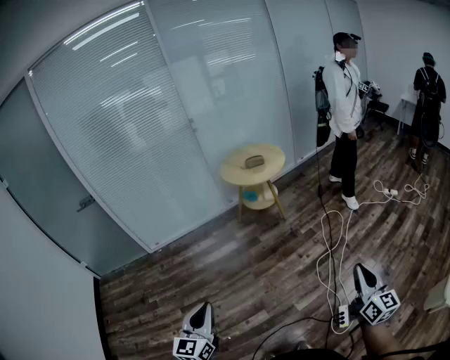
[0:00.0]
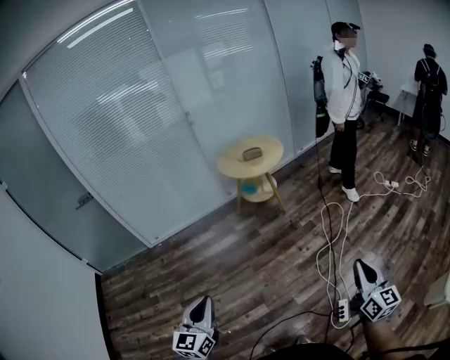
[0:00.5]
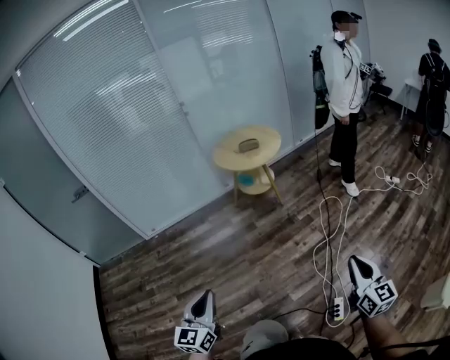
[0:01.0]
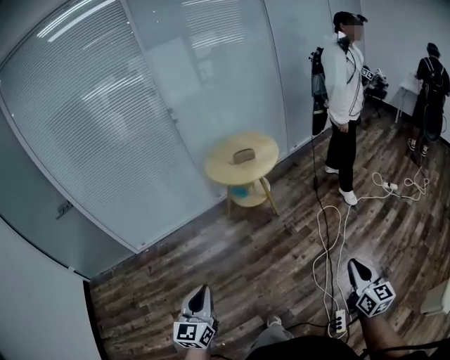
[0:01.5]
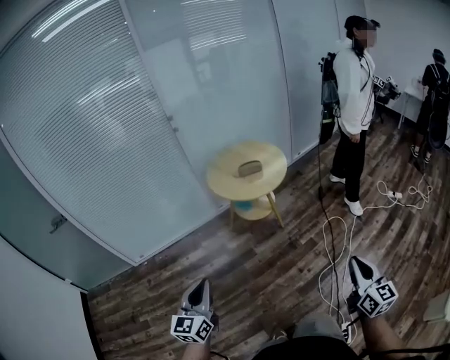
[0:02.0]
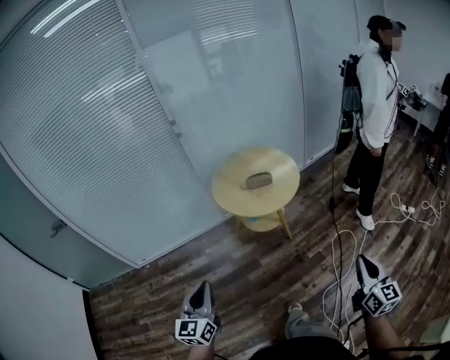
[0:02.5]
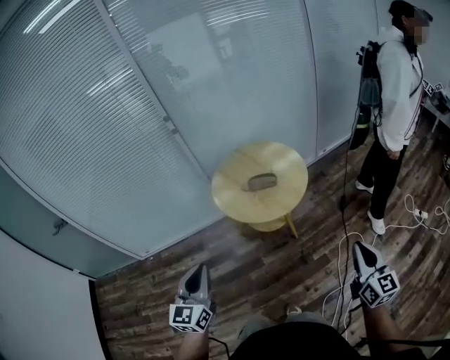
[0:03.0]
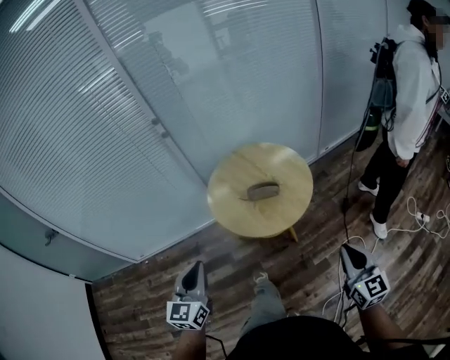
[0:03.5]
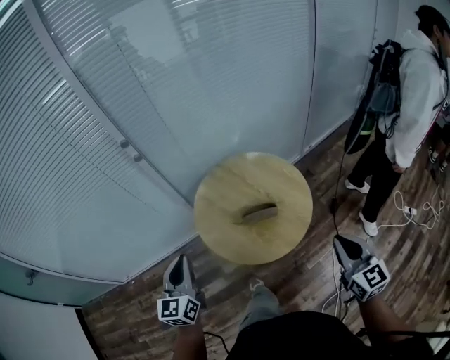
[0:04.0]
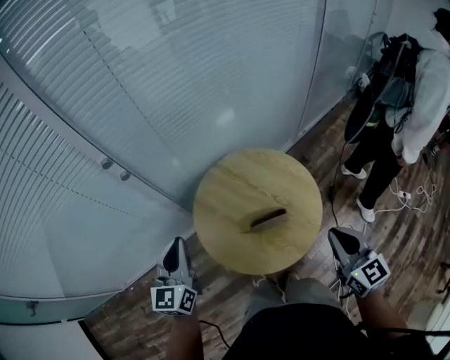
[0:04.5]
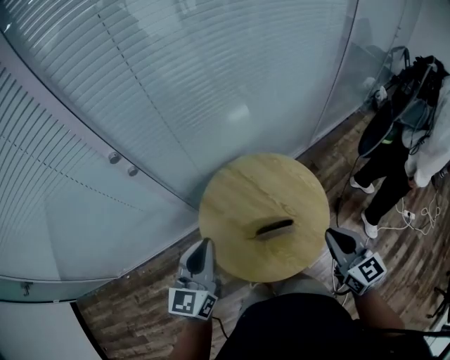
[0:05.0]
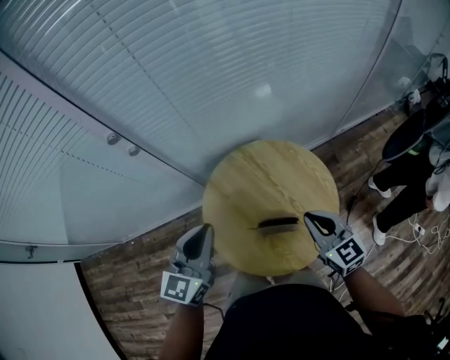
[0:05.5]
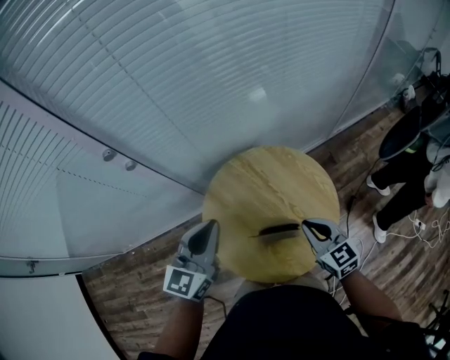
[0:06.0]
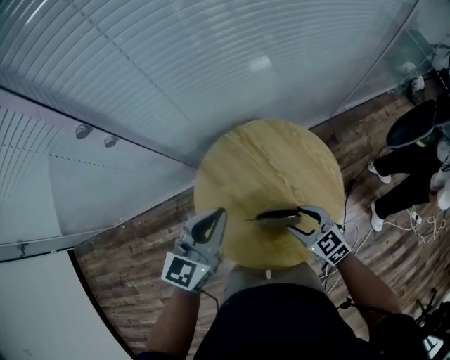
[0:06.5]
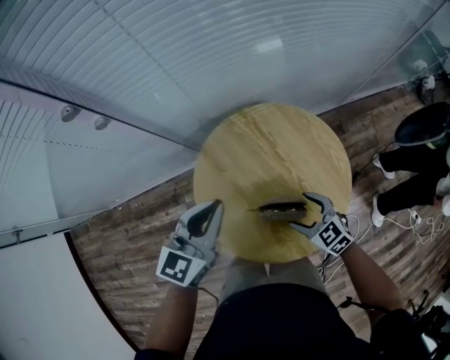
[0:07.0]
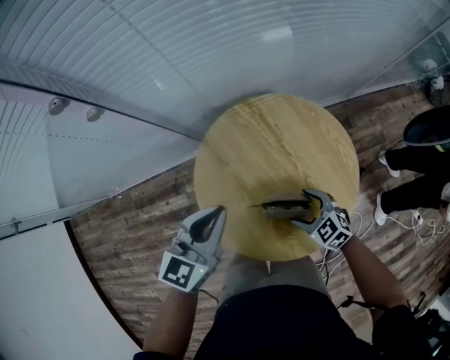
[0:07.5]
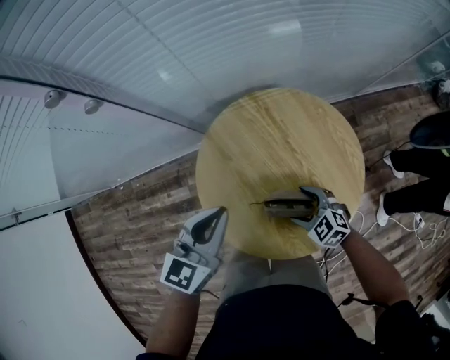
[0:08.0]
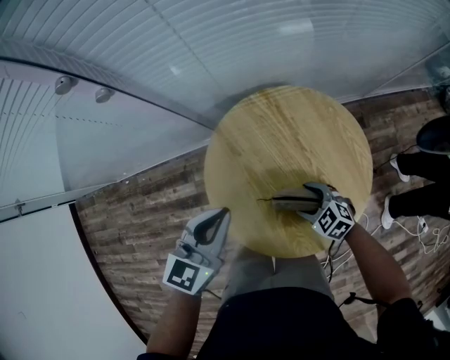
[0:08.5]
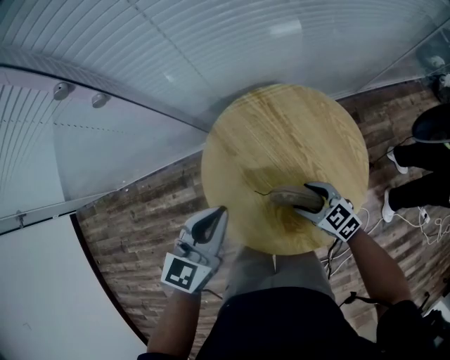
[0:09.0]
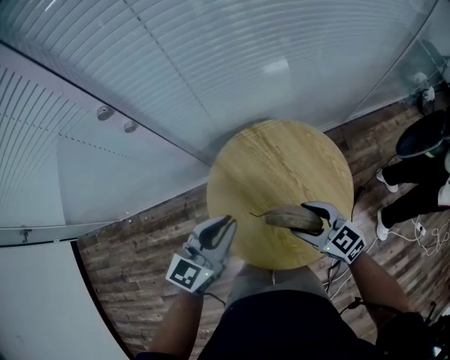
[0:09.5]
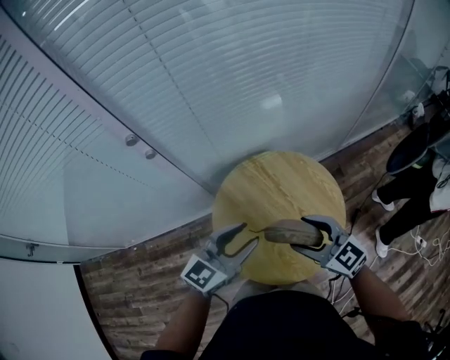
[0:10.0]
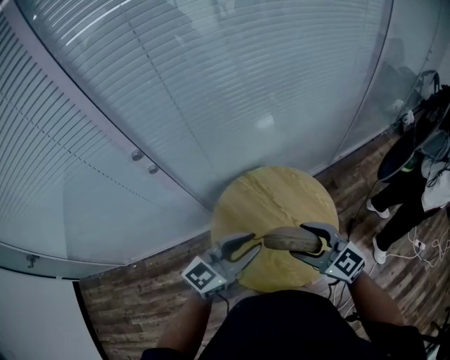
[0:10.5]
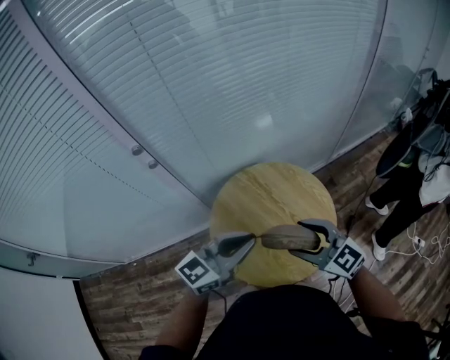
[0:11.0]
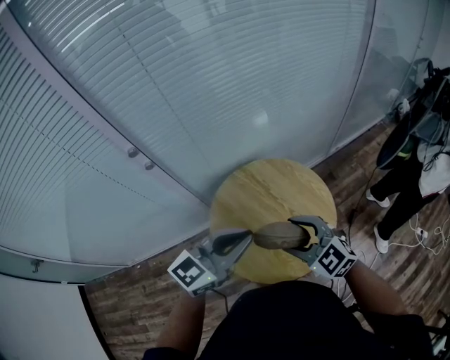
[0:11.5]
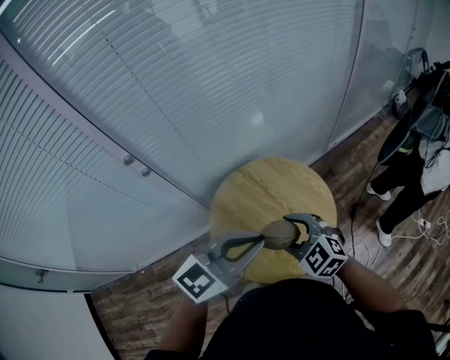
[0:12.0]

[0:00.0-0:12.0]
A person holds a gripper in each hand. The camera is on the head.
0.0 to 2.0 s: Both grippers move forward, approximately 35 cm.
2.0 to 4.0 s: The pair of grippers is taken forward, some 60 cm.
4.0 to 6.0 s: The right gripper heads forward and downward, covering approximately 30 cm, and turns by roughly 30 degrees. Meanwhile the left gripper is displaced forward by about 25 cm.
6.0 to 8.0 s: The right gripper shifts about 20 cm downward, changes its angle by roughly 40 degrees, and opens its fingers. The left gripper is displaced downward by about 10 cm.
8.0 to 10.0 s: The left gripper heads upward, covering approximately 10 cm, rotates some 20 degrees, and opens its fingers. Meanwhile the right gripper shifts some 30 cm upward, and swivels roughly 30 degrees.
10.0 to 12.0 s: The left gripper travels upward, to the right and backward by roughly 15 cm, rotates some 20 degrees, and closes its fingers.

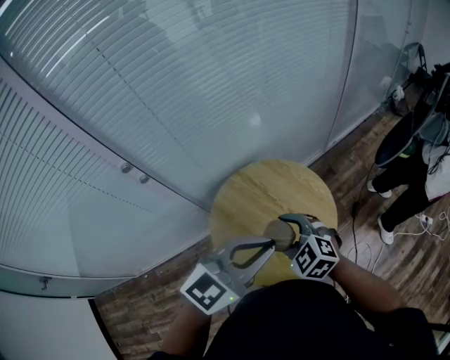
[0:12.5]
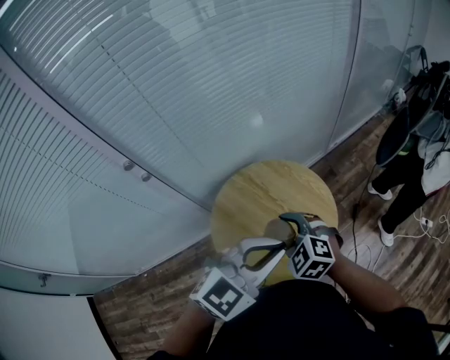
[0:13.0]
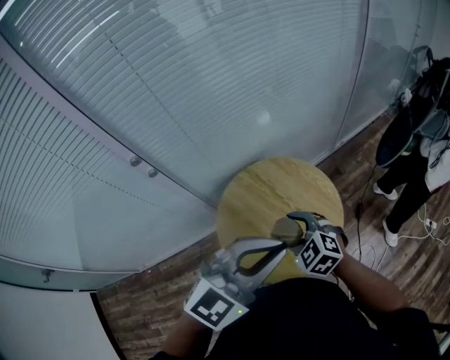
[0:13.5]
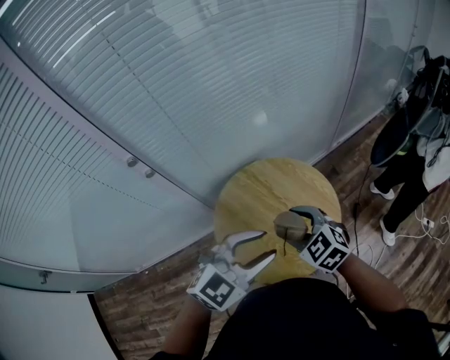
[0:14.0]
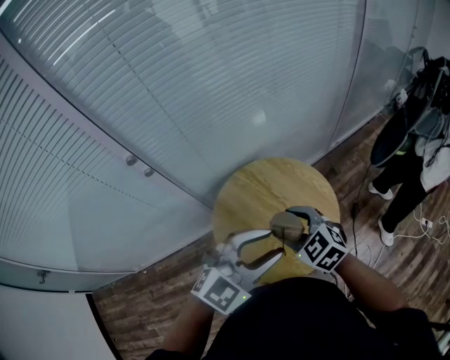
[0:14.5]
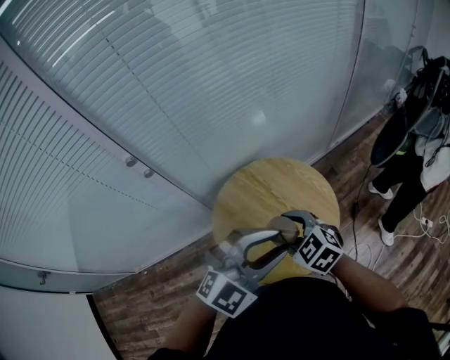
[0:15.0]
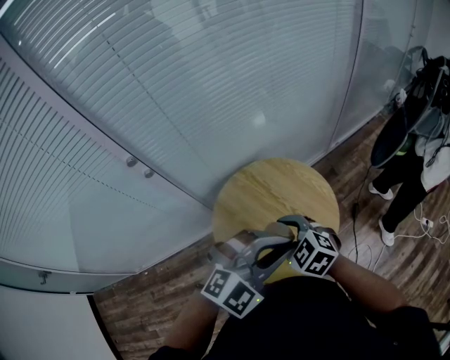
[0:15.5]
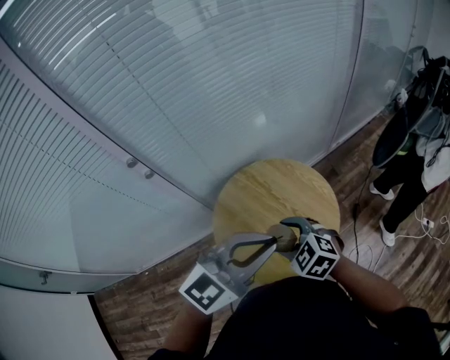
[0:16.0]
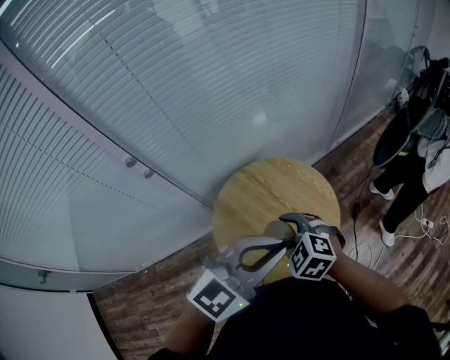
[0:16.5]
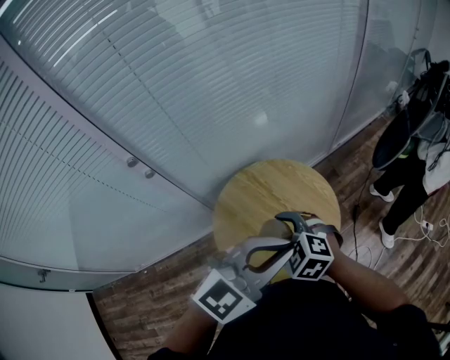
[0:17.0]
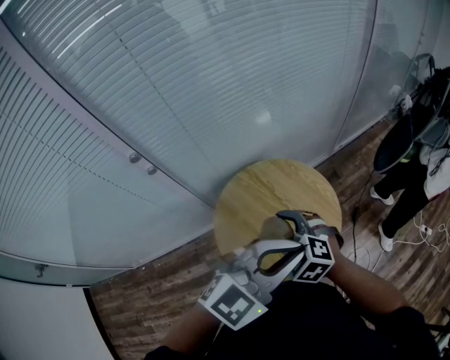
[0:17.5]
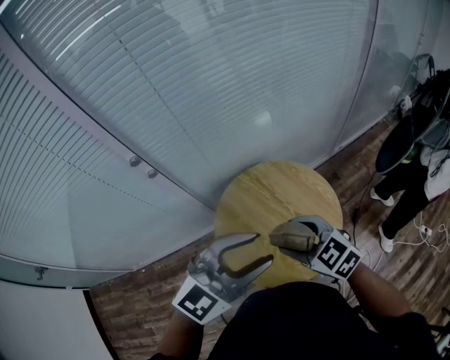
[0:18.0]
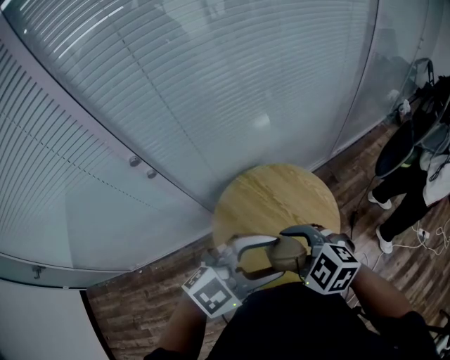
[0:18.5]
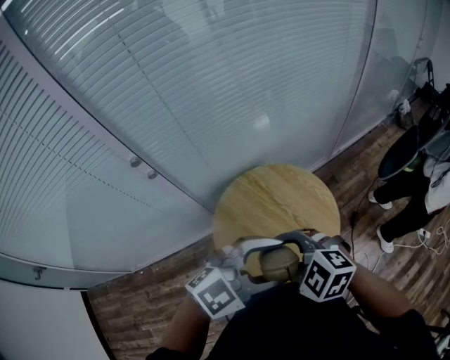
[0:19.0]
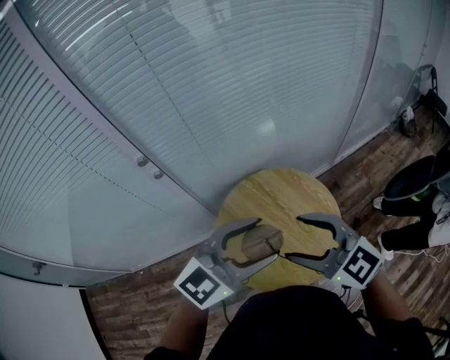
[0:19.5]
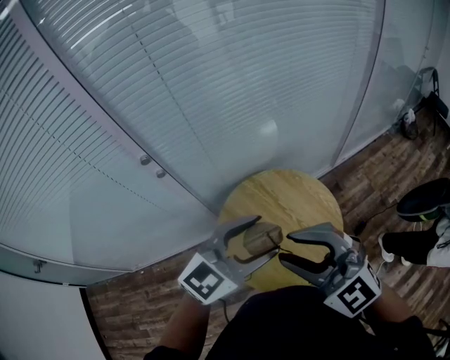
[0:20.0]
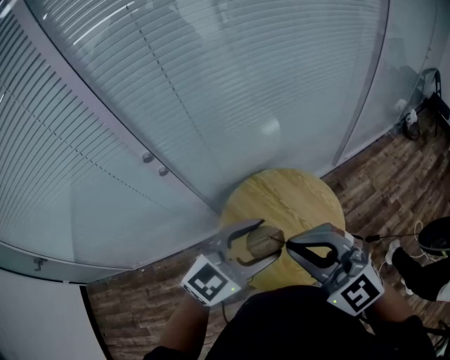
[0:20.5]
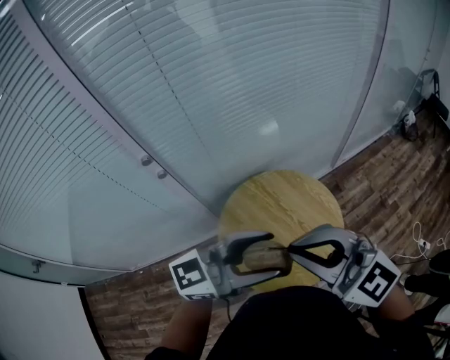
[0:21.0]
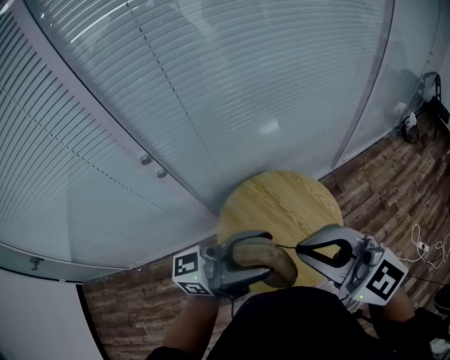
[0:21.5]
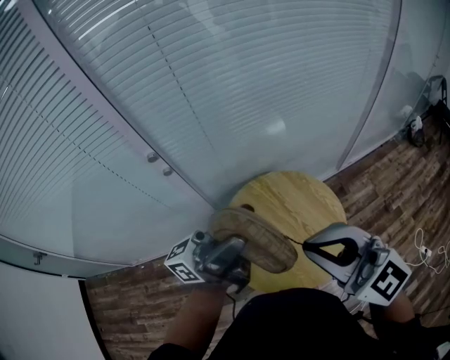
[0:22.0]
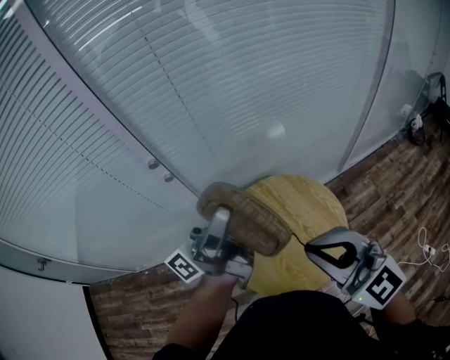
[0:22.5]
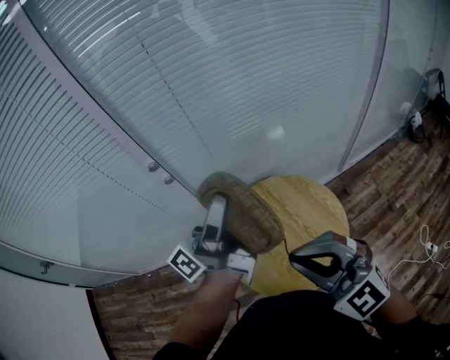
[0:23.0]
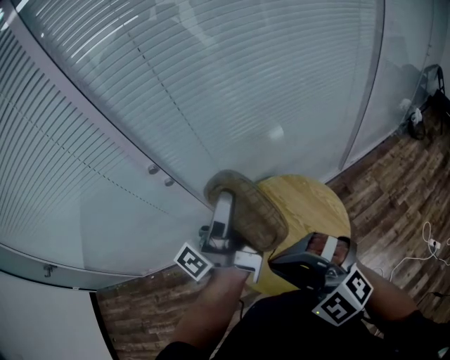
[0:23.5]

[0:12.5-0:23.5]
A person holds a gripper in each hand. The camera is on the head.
12.5 to 14.5 s: The left gripper opens up.
14.5 to 16.0 s: The left gripper closes up.
16.0 to 18.0 s: The left gripper opens, while the right gripper goes approximately 5 cm upward.
18.0 to 20.0 s: The right gripper goes some 15 cm upward, and turns by about 40 degrees.
20.0 to 21.5 s: The left gripper tilts its fingers some 40 degrees upward, while the right gripper heads upward, covering some 5 cm, and closes up.
21.5 to 23.5 s: The right gripper moves downward, some 5 cm, and changes its angle by about 30 degrees. The left gripper moves some 15 cm, and swivels about 40 degrees.

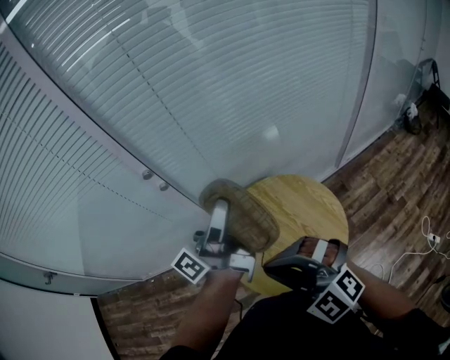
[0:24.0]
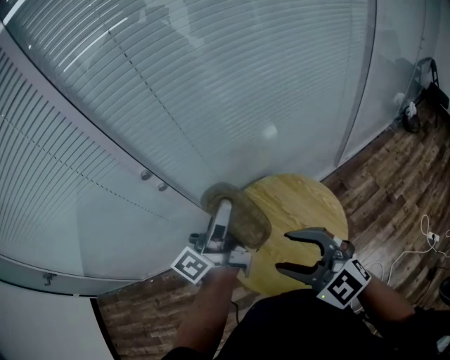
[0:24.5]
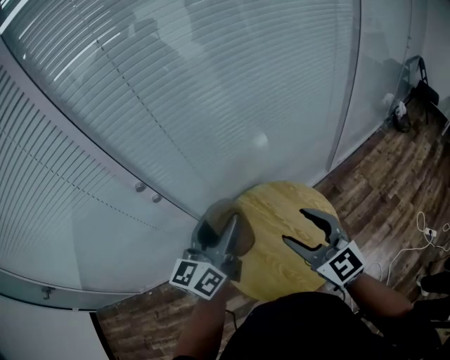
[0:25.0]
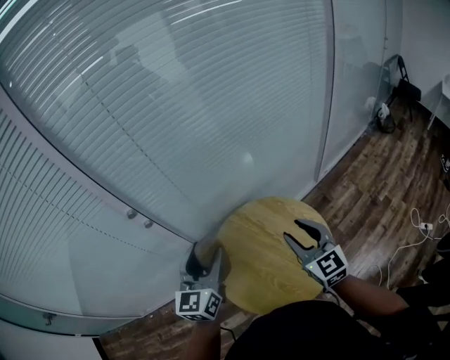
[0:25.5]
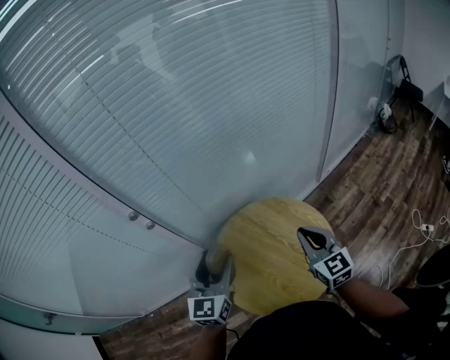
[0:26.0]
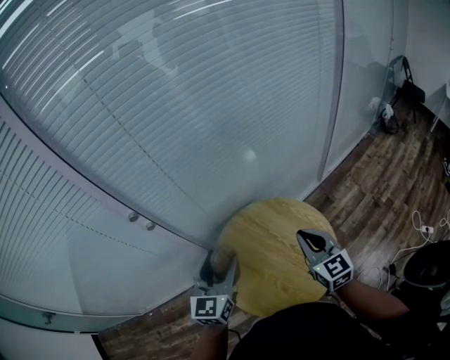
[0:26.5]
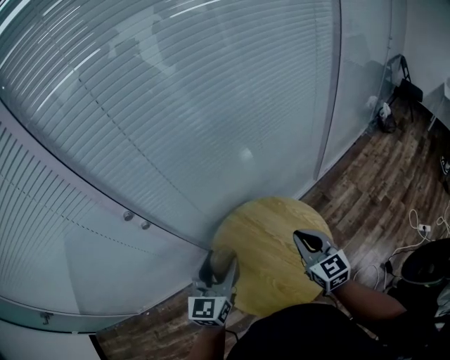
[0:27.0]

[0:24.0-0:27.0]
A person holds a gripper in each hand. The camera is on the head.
24.0 to 25.5 s: The right gripper goes roughly 20 cm to the right, forward and downward, turns by roughly 60 degrees, and opens its fingers, while the left gripper goes approximately 15 cm downward, and rotates around the line of its fingers by approximately 60 degrees, clockwise from behind.
25.5 to 27.0 s: The right gripper closes up.

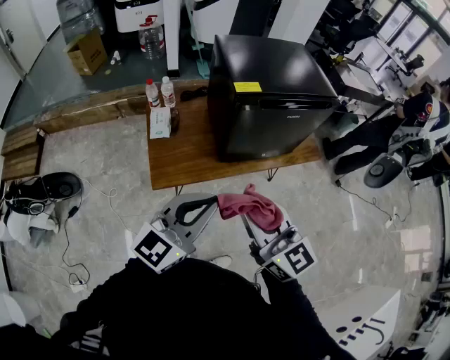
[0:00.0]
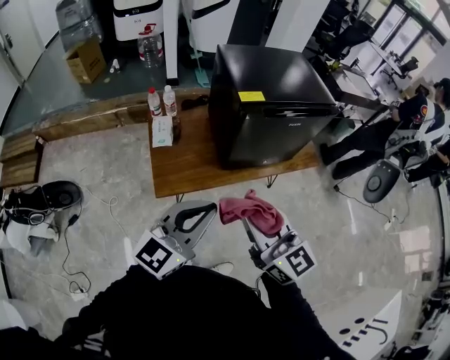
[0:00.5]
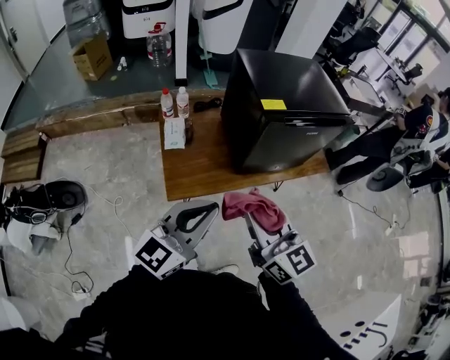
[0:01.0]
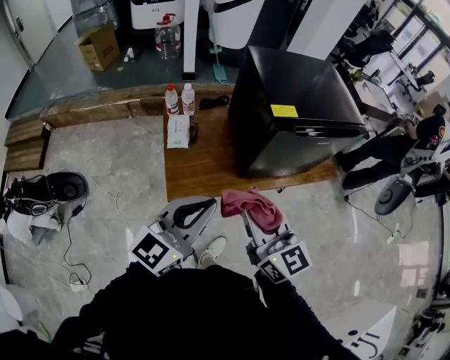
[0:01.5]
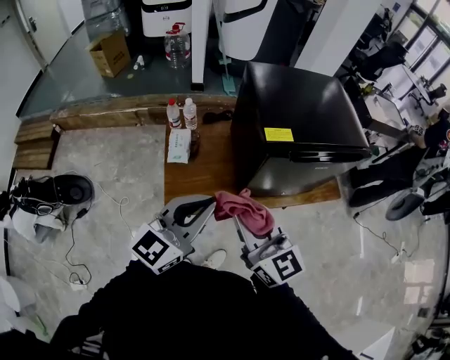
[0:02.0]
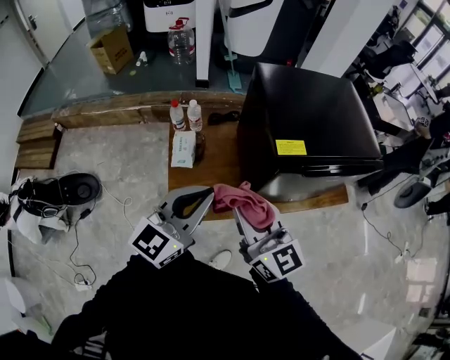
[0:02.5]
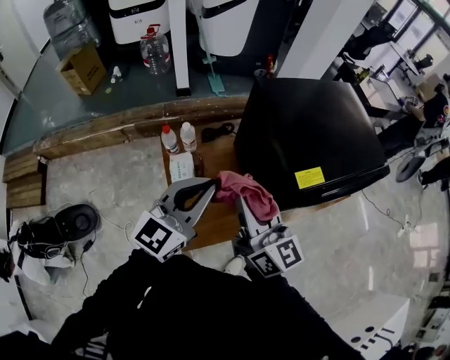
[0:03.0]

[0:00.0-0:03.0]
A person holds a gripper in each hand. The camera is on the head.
0.0 to 1.5 s: The two grippers go approximately 15 cm to the left and forward.
1.5 to 3.0 s: The grippers both shift forward by about 25 cm.
